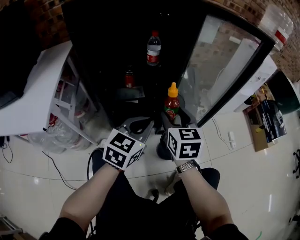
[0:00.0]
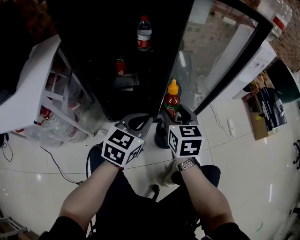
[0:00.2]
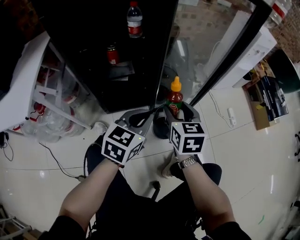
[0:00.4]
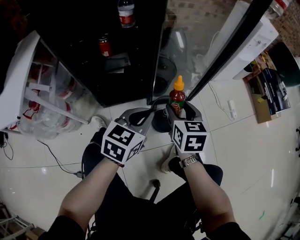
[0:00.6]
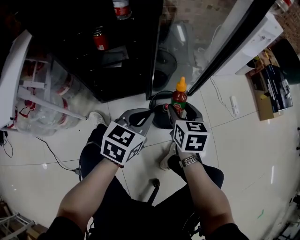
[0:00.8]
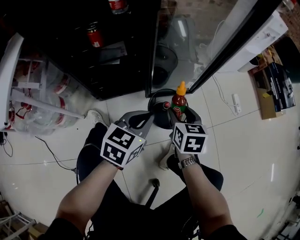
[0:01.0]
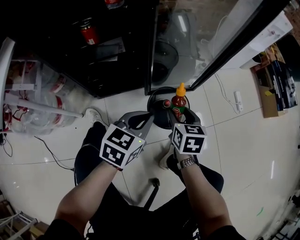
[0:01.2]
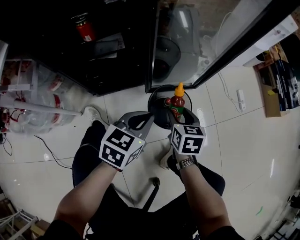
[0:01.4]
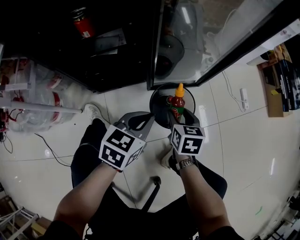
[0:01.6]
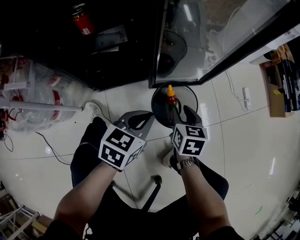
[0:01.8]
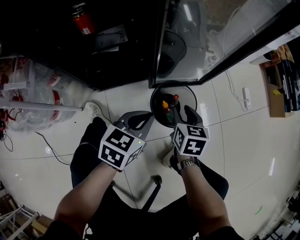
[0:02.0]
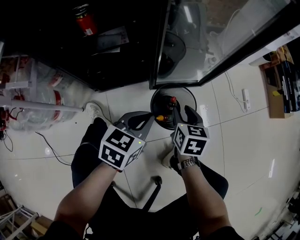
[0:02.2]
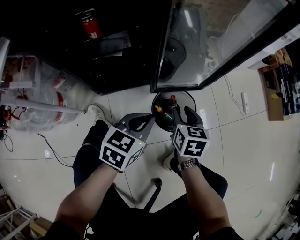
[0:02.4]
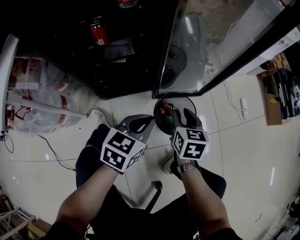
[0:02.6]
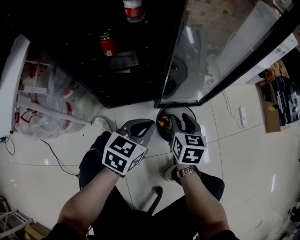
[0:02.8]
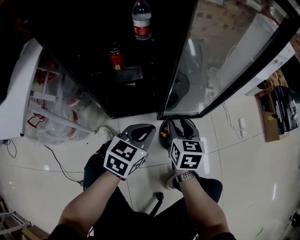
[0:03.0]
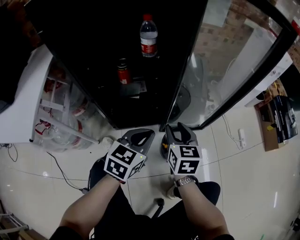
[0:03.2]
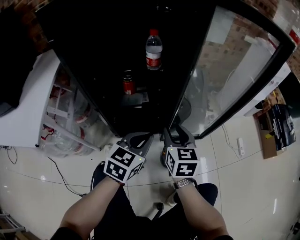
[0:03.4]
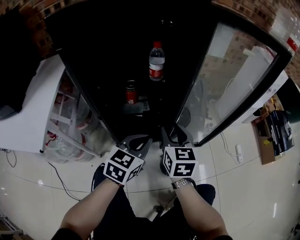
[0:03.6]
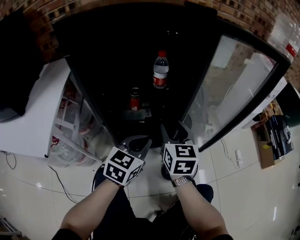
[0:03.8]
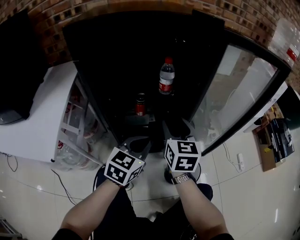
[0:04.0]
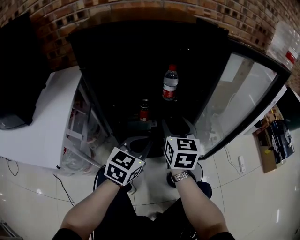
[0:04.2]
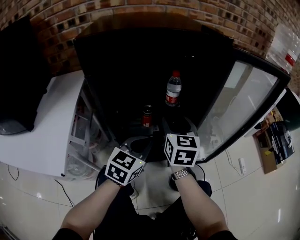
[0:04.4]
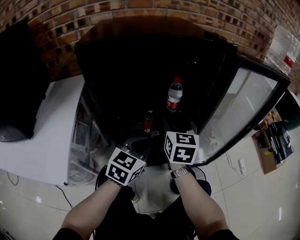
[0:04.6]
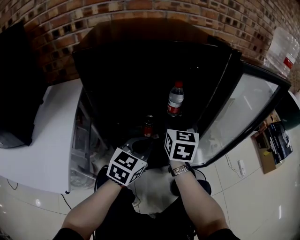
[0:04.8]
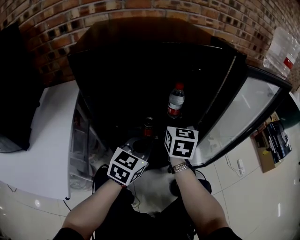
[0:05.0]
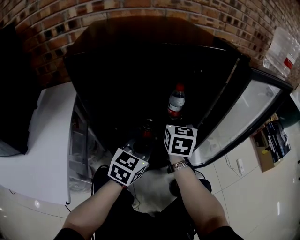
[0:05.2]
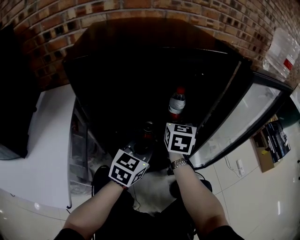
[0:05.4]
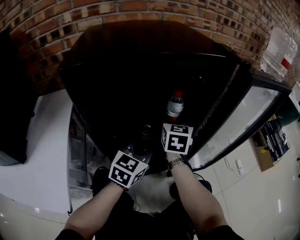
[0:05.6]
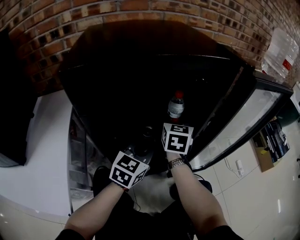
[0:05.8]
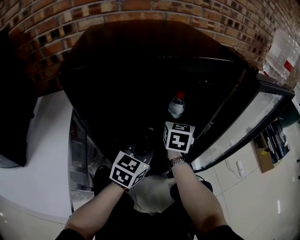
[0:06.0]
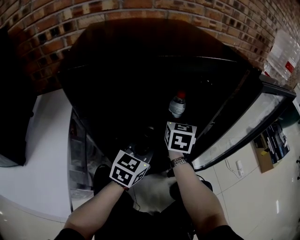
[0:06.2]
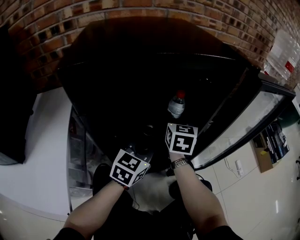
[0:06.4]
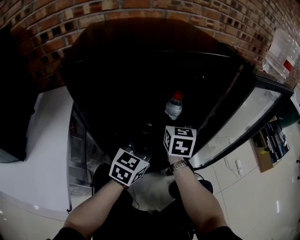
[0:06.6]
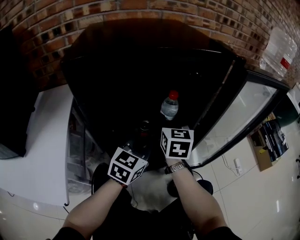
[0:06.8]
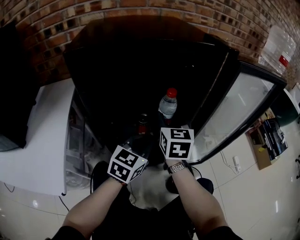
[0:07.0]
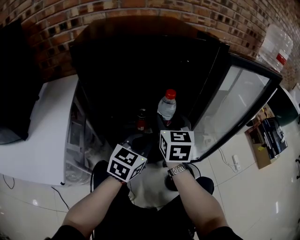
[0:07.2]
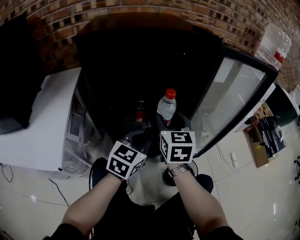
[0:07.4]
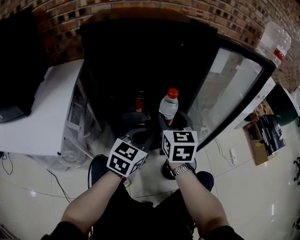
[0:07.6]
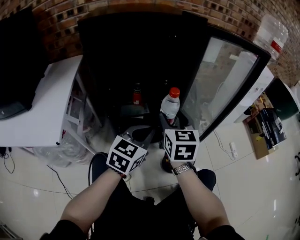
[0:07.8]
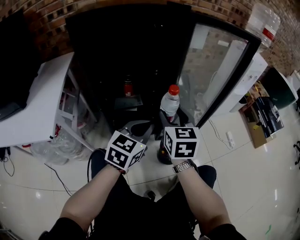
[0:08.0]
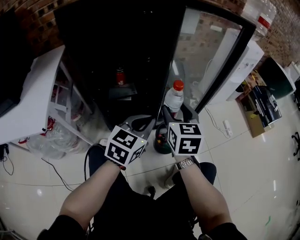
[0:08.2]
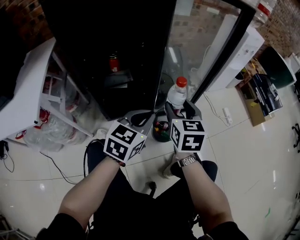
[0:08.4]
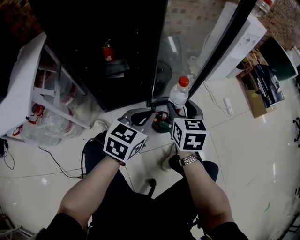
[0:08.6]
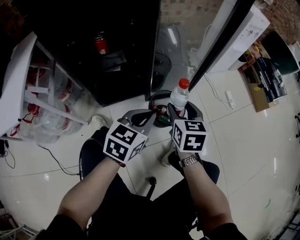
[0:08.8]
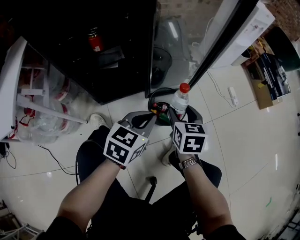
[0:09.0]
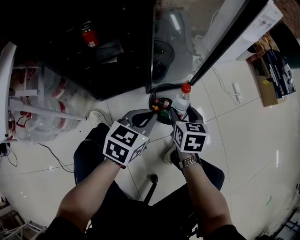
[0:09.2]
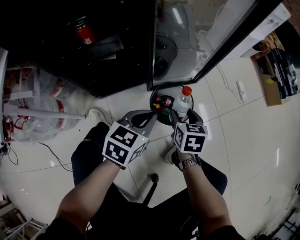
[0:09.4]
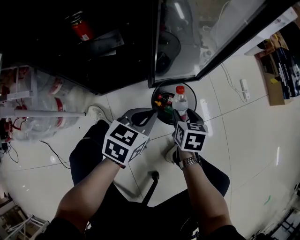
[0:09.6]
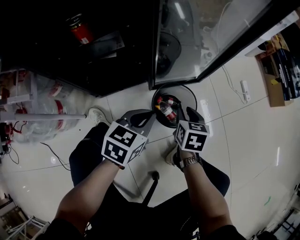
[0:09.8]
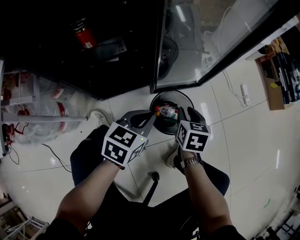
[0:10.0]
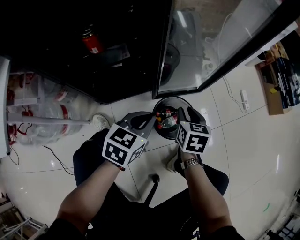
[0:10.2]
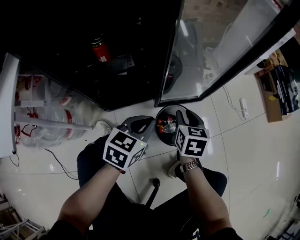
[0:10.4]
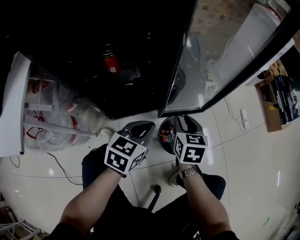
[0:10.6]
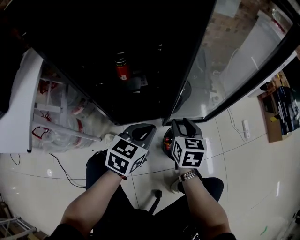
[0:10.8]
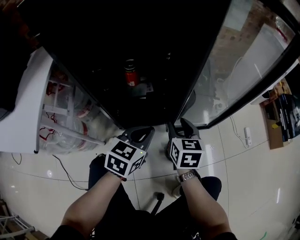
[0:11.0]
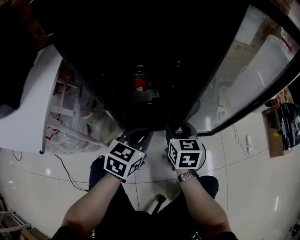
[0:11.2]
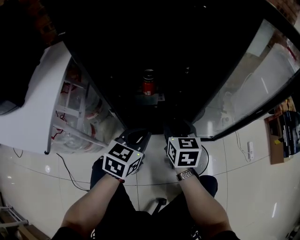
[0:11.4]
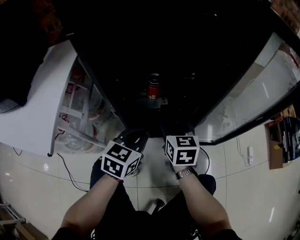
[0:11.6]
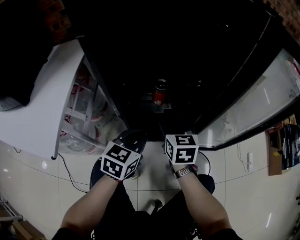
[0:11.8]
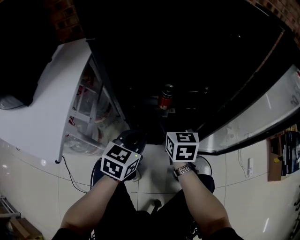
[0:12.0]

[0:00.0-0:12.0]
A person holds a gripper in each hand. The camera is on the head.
0:00.0 to 0:01.6: Both grippers travel together downward and to the right, about 30 cm. The right gripper changes its angle by roughly 30 degrees; the left gripper rotates about 20 degrees.
0:01.6 to 0:03.0: Both grippers move upward and to the left, approximately 15 cm.
0:03.0 to 0:04.4: The right gripper moves upward, to the left and forward, some 30 cm, and changes its angle by approximately 20 degrees, while the left gripper moves to the left, upward and forward, roughly 20 cm.
0:04.4 to 0:06.0: The two grippers go some 10 cm forward.
0:06.0 to 0:07.6: The left gripper travels backward and to the right by some 15 cm; the right gripper heads backward, covering about 20 cm.
0:07.6 to 0:09.0: The right gripper shifts about 35 cm downward and to the right, and turns by approximately 30 degrees, while the left gripper is displaced to the right and downward by some 25 cm.
0:09.0 to 0:10.4: The left gripper moves to the left and forward, about 10 cm. The right gripper is displaced forward and to the left by about 10 cm, reaches roughly 15 cm downward, then returns, and closes.
0:10.4 to 0:12.0: Both grippers move to the left and upward, some 30 cm. The left gripper changes its angle by about 20 degrees. Meanwhile the right gripper changes its angle by roughly 30 degrees, and opens its fingers.

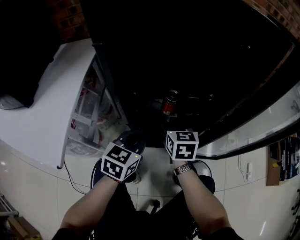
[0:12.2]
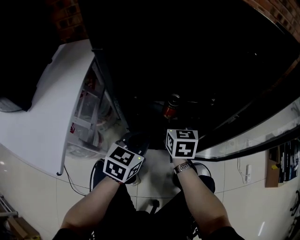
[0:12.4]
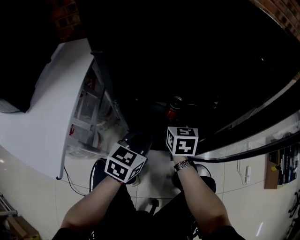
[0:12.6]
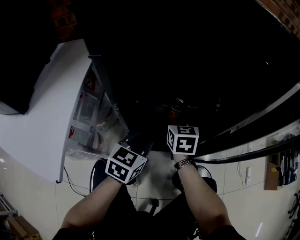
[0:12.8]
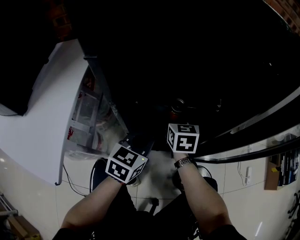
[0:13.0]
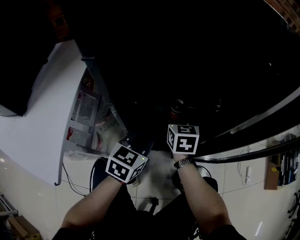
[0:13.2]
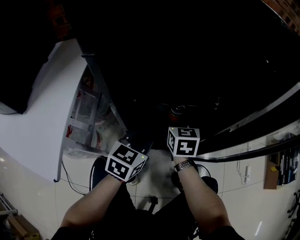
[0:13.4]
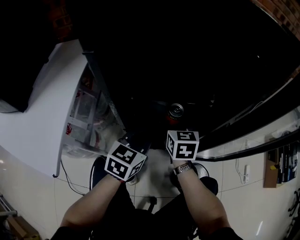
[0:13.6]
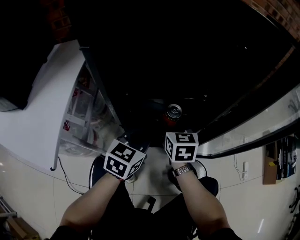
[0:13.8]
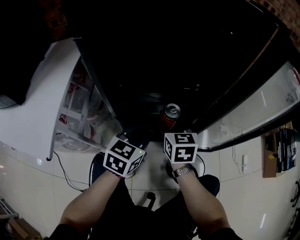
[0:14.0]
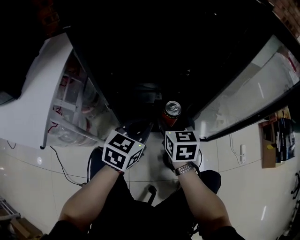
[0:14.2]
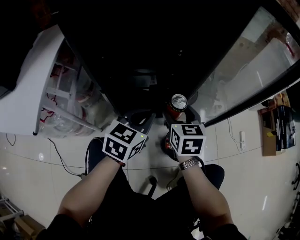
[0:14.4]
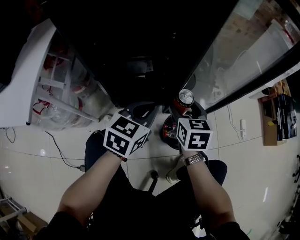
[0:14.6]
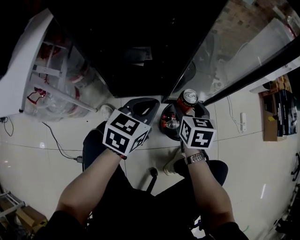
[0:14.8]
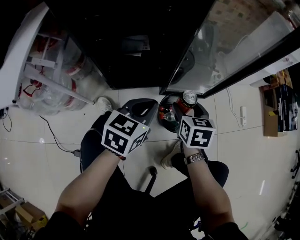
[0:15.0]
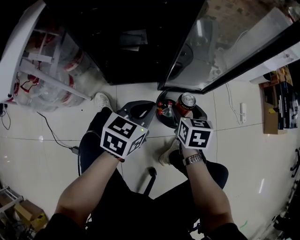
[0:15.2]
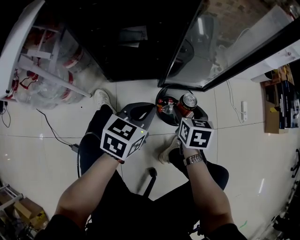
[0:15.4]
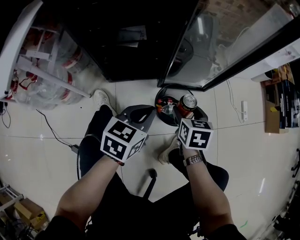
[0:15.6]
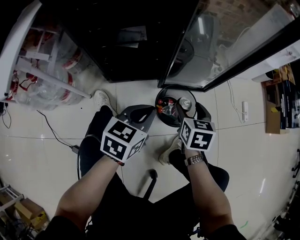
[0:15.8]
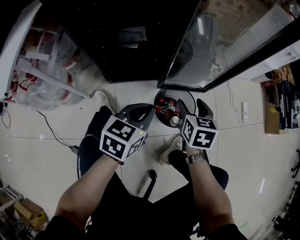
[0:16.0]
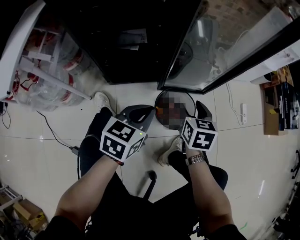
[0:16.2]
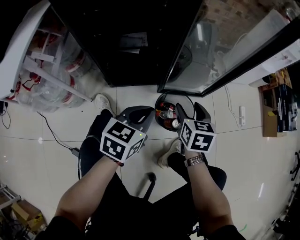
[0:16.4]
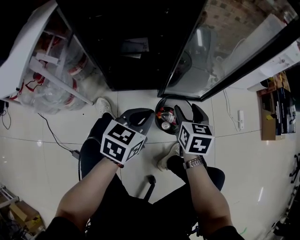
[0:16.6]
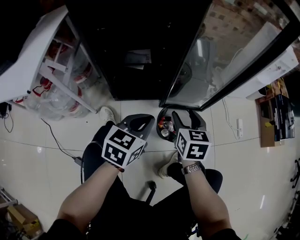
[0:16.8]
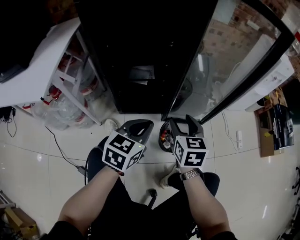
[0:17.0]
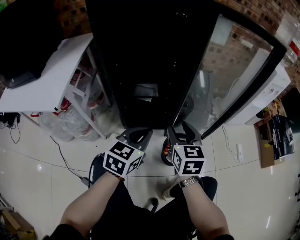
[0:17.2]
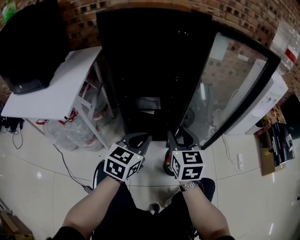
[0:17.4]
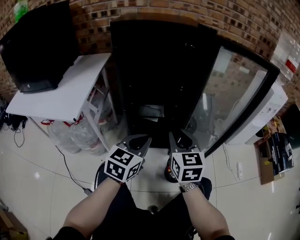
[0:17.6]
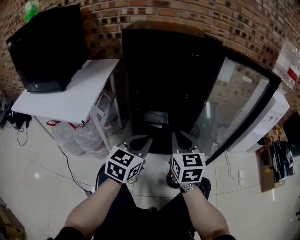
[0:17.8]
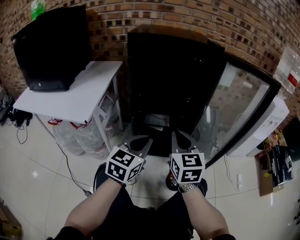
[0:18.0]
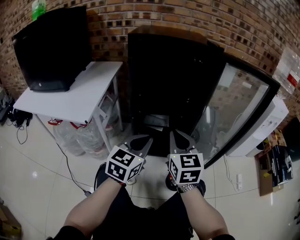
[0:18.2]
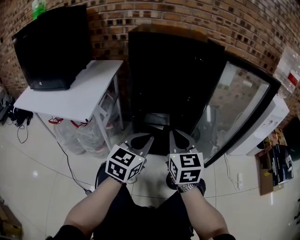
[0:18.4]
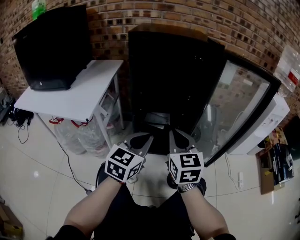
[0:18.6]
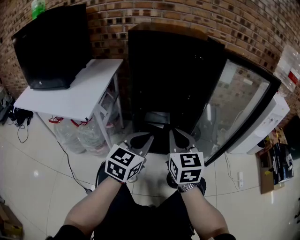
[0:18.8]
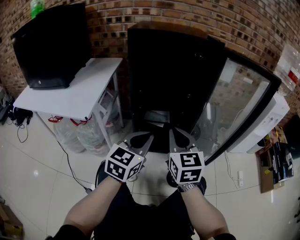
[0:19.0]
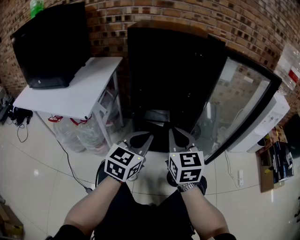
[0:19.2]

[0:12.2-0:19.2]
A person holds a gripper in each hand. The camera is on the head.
0:13.6 to 0:15.0: The grippers both shift to the right and backward by some 30 cm.
0:16.4 to 0:17.8: The grippers both shift upward and to the left by some 30 cm. The left gripper rotates approximately 30 degrees. Meanwhile the right gripper changes its angle by about 30 degrees, and closes.
0:17.8 to 0:19.2: There are only small adjustments of the grippers.

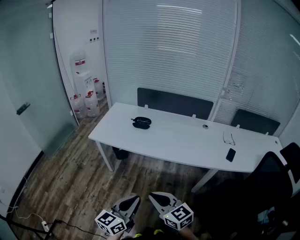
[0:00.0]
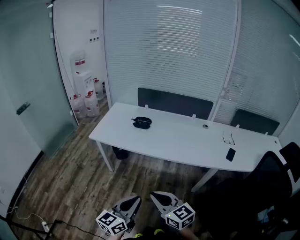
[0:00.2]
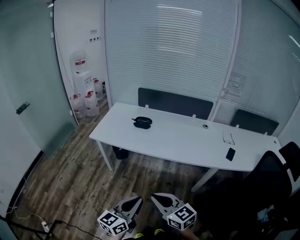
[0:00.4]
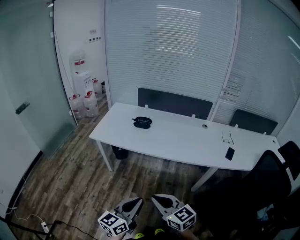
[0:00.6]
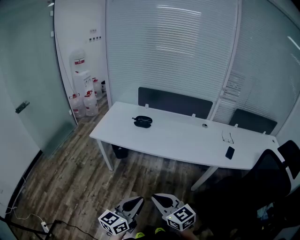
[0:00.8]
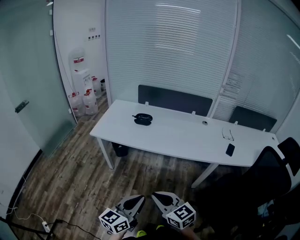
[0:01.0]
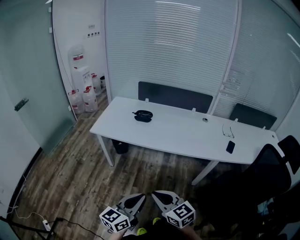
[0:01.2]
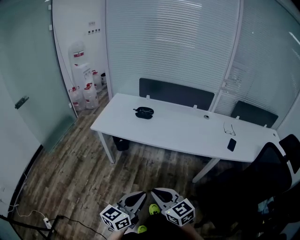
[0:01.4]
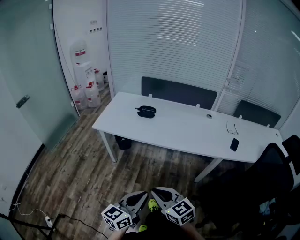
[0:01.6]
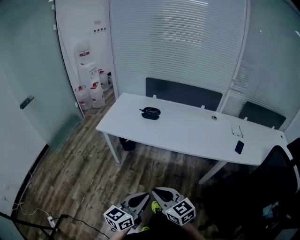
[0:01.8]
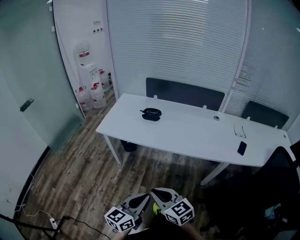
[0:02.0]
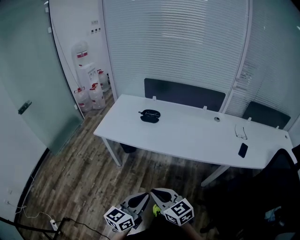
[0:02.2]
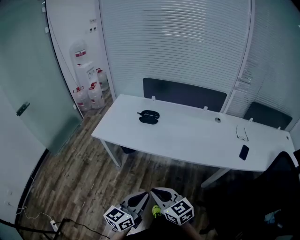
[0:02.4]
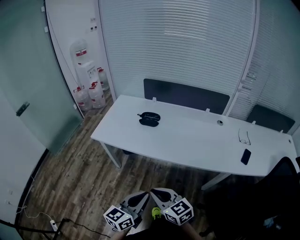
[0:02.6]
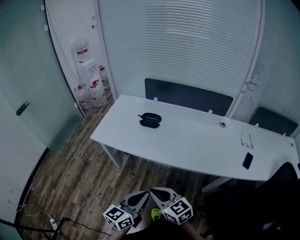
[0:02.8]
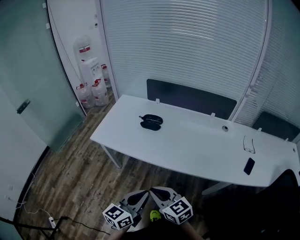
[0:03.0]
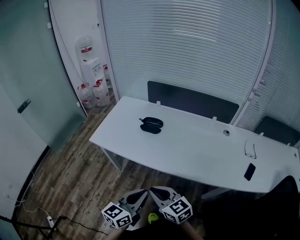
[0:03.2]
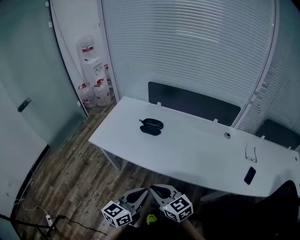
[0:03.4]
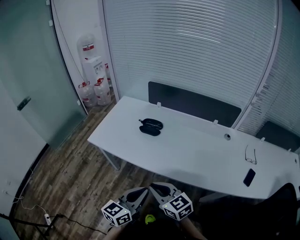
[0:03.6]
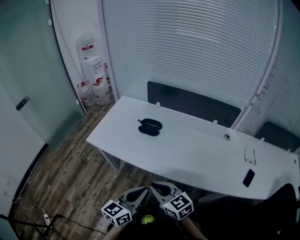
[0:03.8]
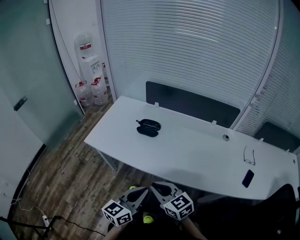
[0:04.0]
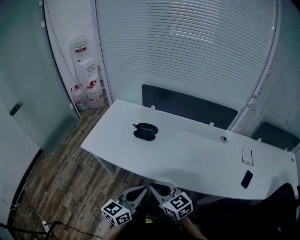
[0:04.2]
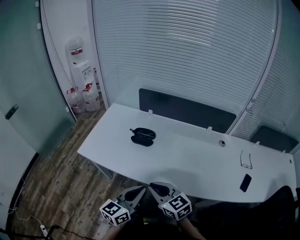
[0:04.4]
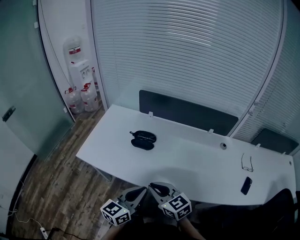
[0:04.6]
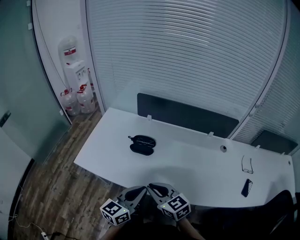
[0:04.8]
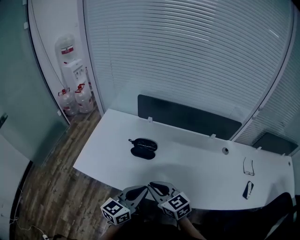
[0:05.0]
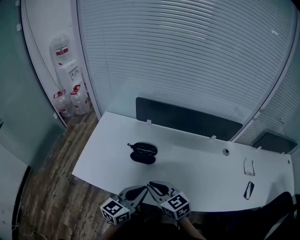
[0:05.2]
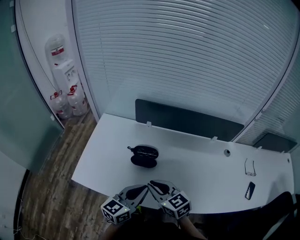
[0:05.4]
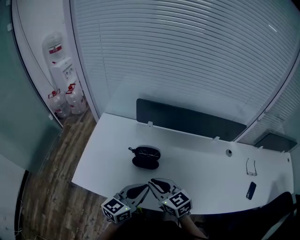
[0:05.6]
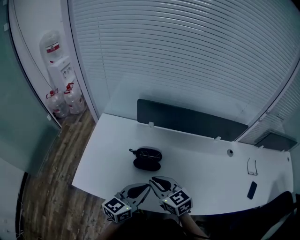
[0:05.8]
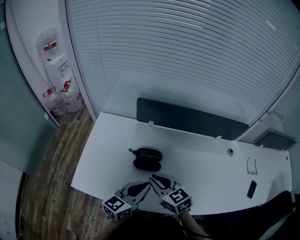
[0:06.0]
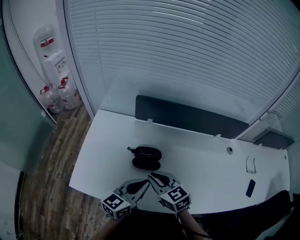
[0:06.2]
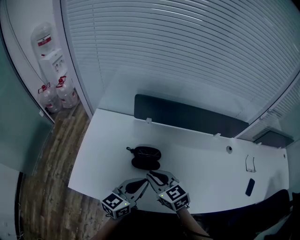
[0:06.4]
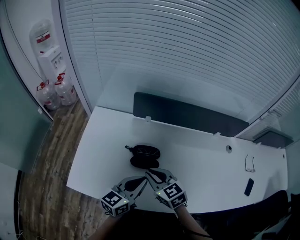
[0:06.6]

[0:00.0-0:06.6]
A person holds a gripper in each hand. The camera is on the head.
0:00.0 to 0:01.6: The right gripper shifts by some 5 cm.
0:01.6 to 0:03.2: Both grippers move forward, roughly 20 cm.
0:03.2 to 0:05.0: The two grippers go about 20 cm forward.
0:05.0 to 0:06.6: The grippers both shift forward by some 15 cm.
